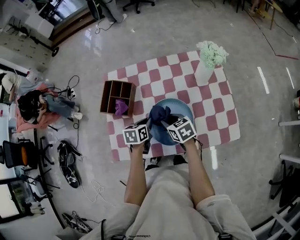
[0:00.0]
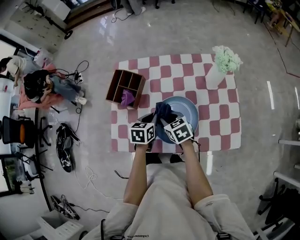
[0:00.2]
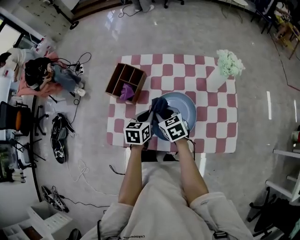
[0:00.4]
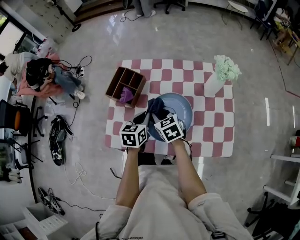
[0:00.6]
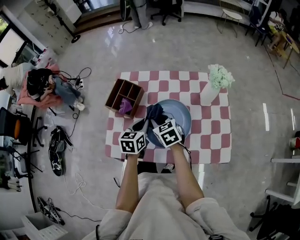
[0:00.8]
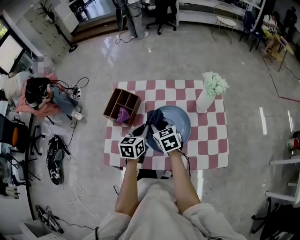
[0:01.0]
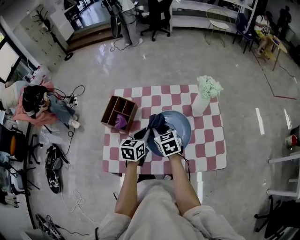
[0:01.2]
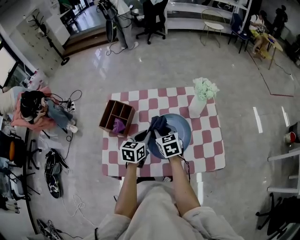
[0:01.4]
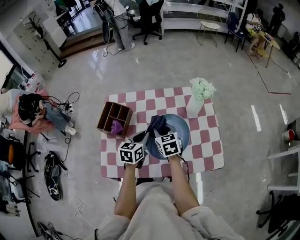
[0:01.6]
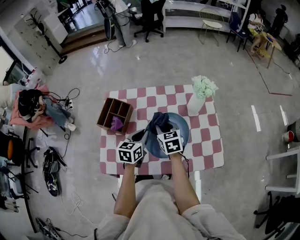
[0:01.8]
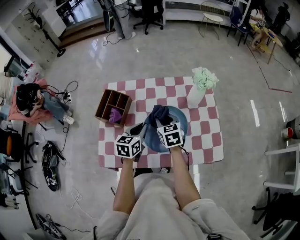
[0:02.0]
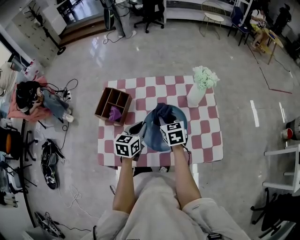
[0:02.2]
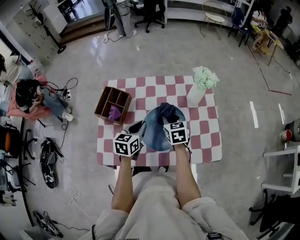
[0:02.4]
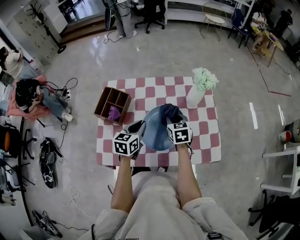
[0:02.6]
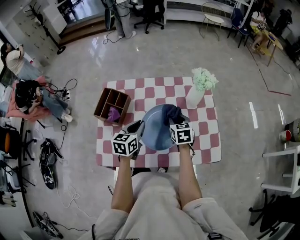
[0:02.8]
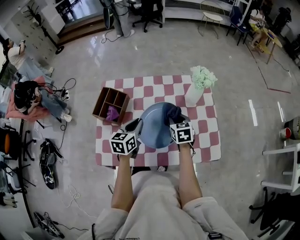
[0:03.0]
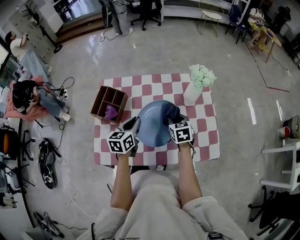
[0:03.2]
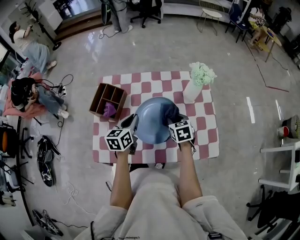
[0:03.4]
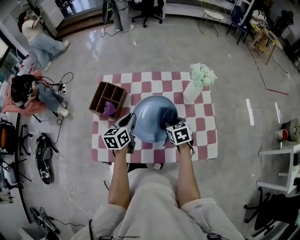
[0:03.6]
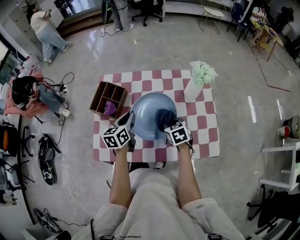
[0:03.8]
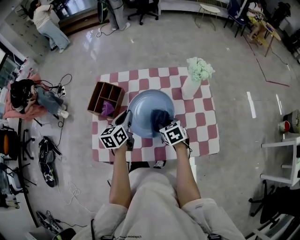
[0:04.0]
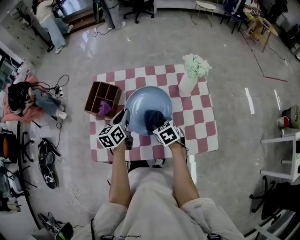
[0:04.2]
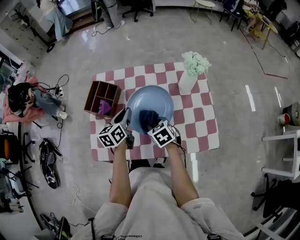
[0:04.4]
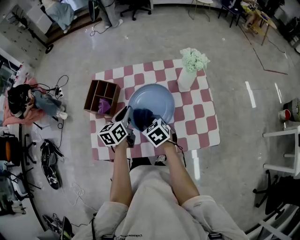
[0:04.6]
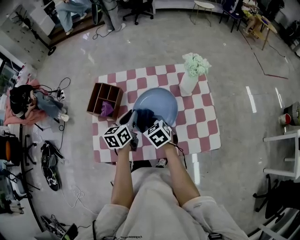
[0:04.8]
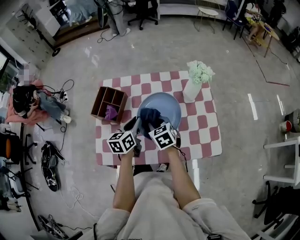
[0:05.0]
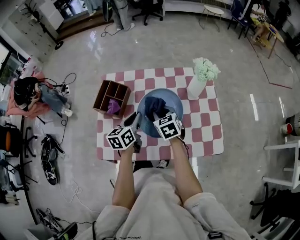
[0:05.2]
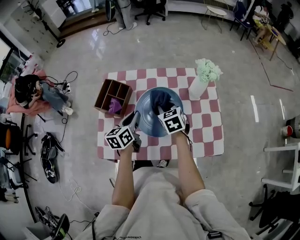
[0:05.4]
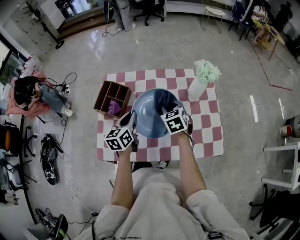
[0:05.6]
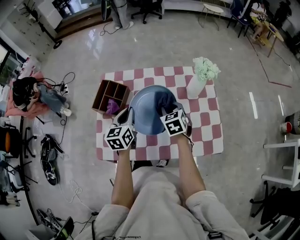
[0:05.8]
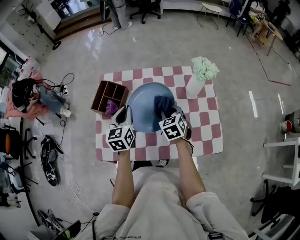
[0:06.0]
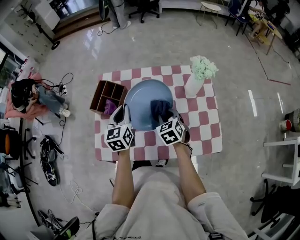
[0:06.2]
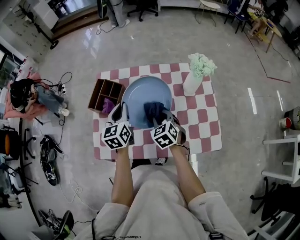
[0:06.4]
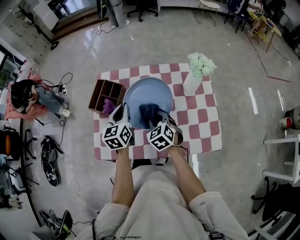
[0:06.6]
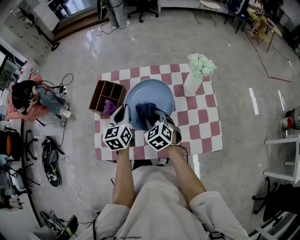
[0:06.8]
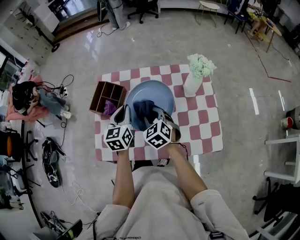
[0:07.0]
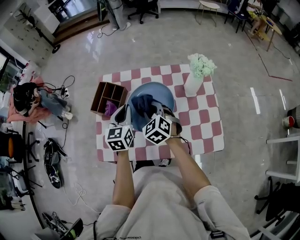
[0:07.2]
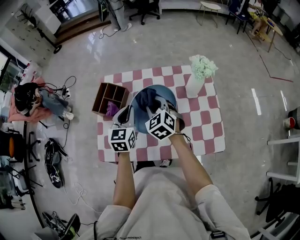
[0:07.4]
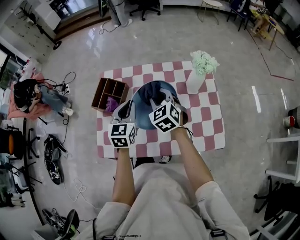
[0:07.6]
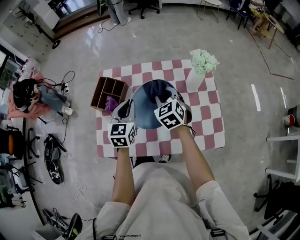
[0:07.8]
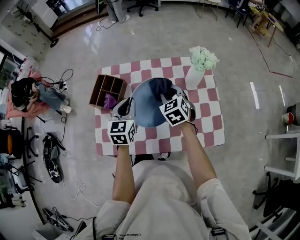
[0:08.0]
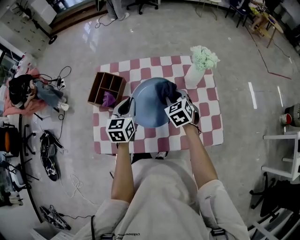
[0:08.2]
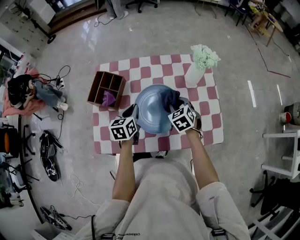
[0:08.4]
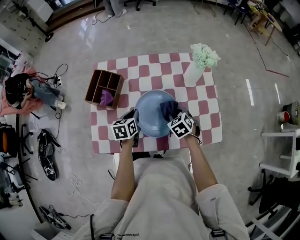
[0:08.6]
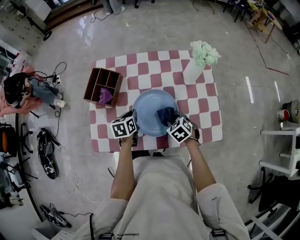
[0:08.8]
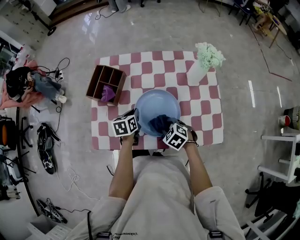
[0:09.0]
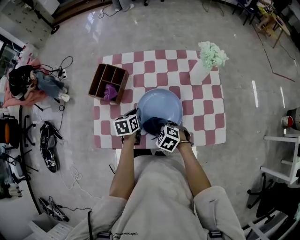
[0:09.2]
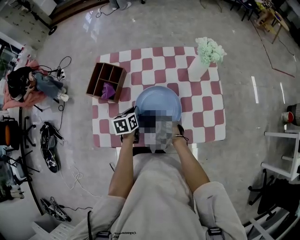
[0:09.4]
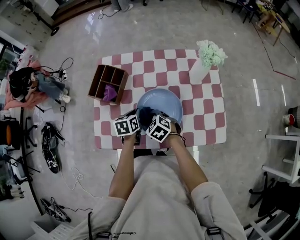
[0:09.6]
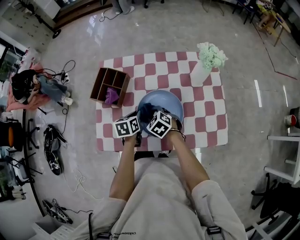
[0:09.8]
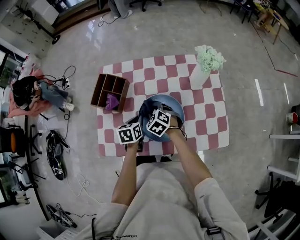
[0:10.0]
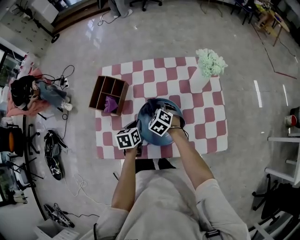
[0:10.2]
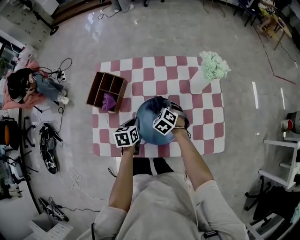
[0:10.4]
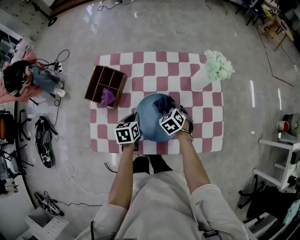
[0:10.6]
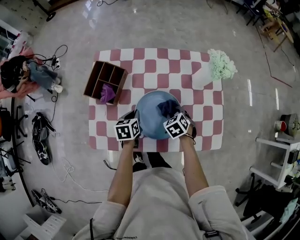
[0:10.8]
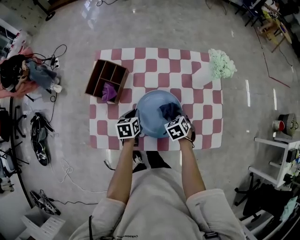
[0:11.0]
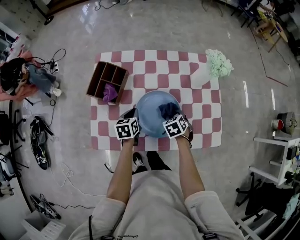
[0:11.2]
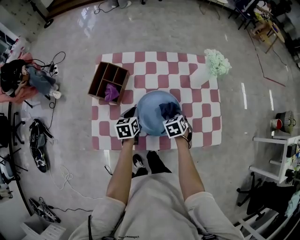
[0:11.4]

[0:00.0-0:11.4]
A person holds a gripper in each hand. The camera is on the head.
0:00.0 to 0:01.4: The right gripper moves upward and forward, some 10 cm, and changes its angle by roughly 20 degrees; the left gripper moves upward, some 10 cm, and rotates approximately 20 degrees.
0:01.4 to 0:02.8: The right gripper goes approximately 10 cm to the right.
0:02.8 to 0:04.2: The right gripper heads backward and to the left, covering some 10 cm, and rotates approximately 20 degrees.
0:04.2 to 0:05.6: The right gripper travels forward and upward by approximately 10 cm.
0:05.6 to 0:07.2: The left gripper turns by approximately 20 degrees, while the right gripper heads to the left, covering approximately 10 cm, and changes its angle by roughly 20 degrees.
0:07.2 to 0:08.6: The left gripper moves downward, roughly 15 cm, and changes its angle by roughly 30 degrees, while the right gripper shifts roughly 20 cm downward and to the right, and turns by approximately 20 degrees.
0:08.6 to 0:10.0: The right gripper shifts roughly 15 cm to the left and forward, and turns by some 20 degrees.
0:10.0 to 0:11.4: The right gripper shifts about 10 cm to the right, and rotates approximately 30 degrees.

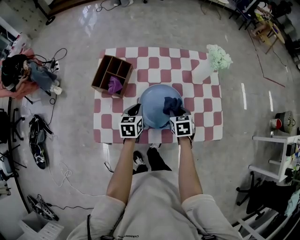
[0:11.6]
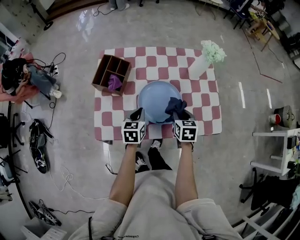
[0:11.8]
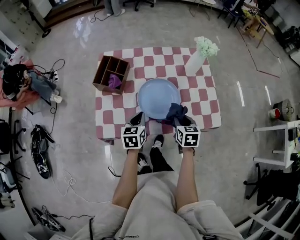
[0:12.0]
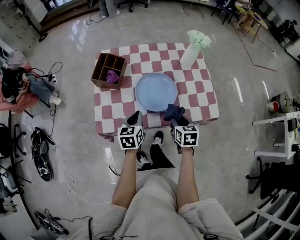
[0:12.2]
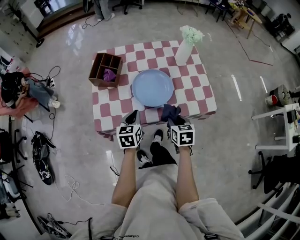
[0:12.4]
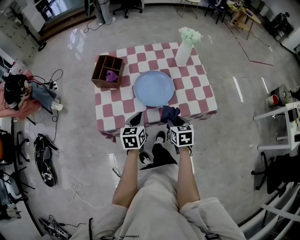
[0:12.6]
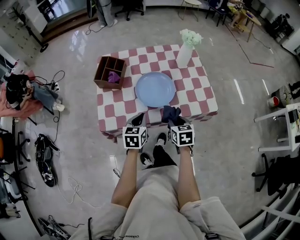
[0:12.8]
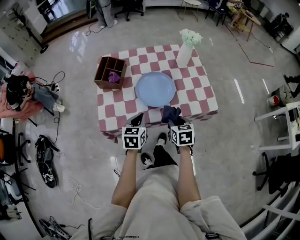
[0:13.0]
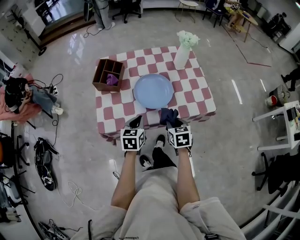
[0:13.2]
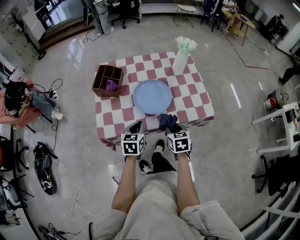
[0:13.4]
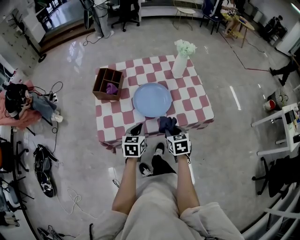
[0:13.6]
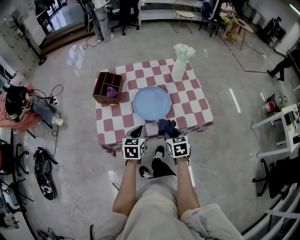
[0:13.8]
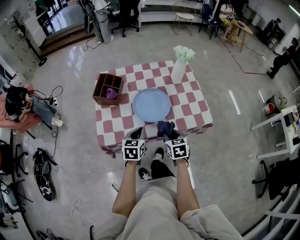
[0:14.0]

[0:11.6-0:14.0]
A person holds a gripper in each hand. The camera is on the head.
0:11.6 to 0:12.8: Both grippers move backward, roughly 20 cm.
0:12.8 to 0:14.0: The two grippers keep their place.

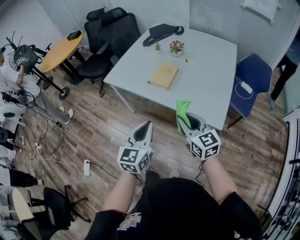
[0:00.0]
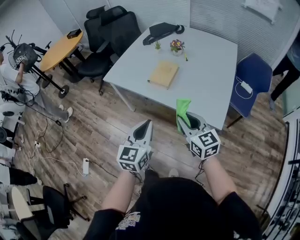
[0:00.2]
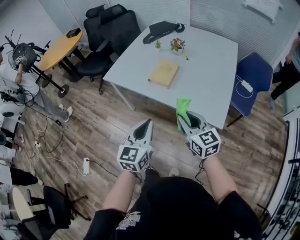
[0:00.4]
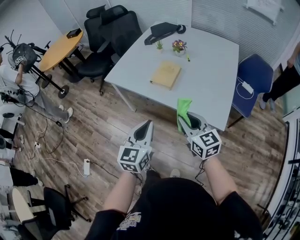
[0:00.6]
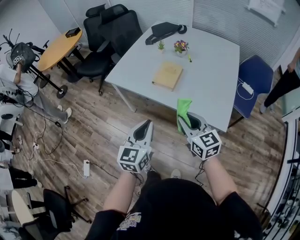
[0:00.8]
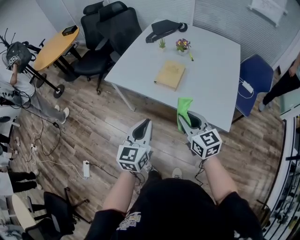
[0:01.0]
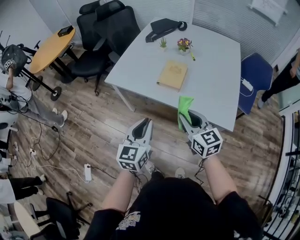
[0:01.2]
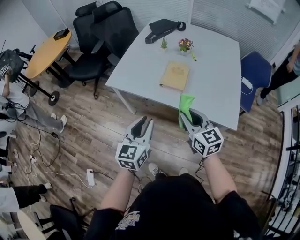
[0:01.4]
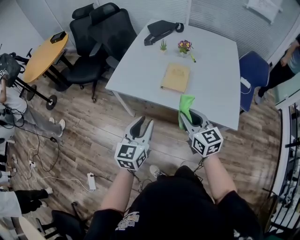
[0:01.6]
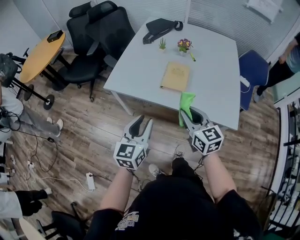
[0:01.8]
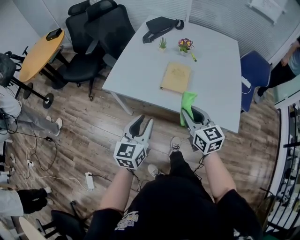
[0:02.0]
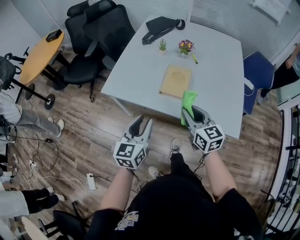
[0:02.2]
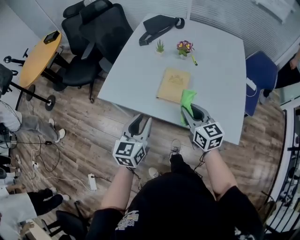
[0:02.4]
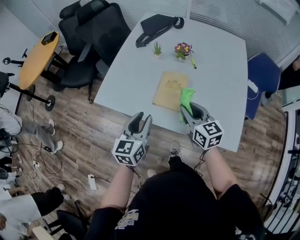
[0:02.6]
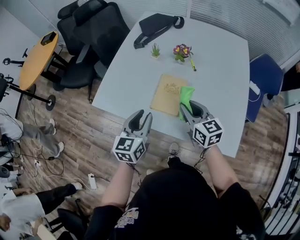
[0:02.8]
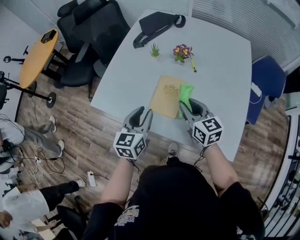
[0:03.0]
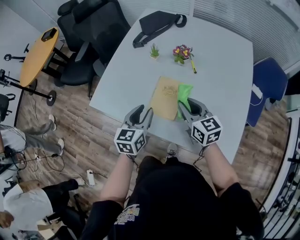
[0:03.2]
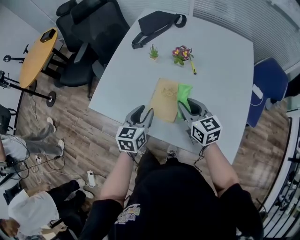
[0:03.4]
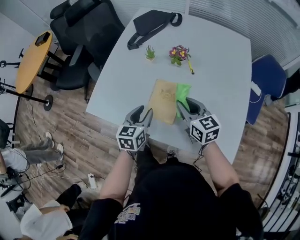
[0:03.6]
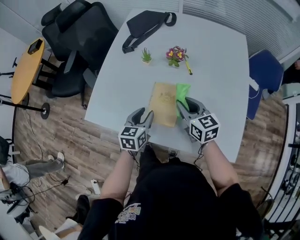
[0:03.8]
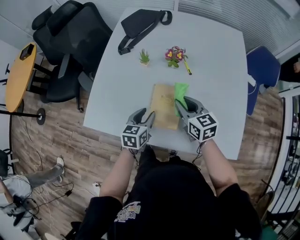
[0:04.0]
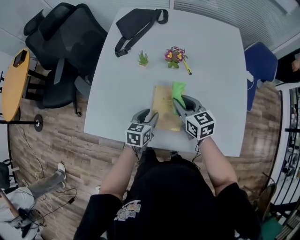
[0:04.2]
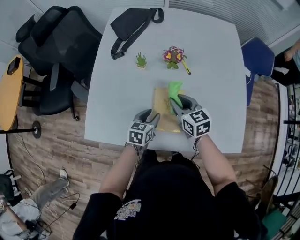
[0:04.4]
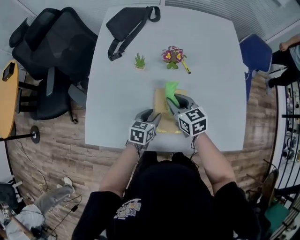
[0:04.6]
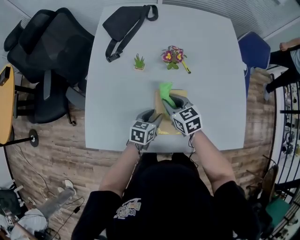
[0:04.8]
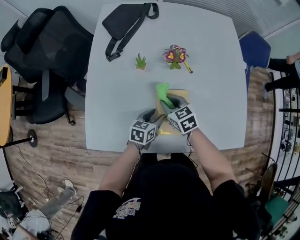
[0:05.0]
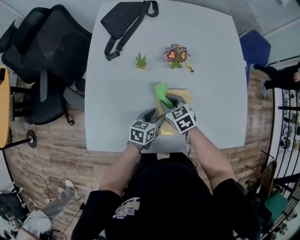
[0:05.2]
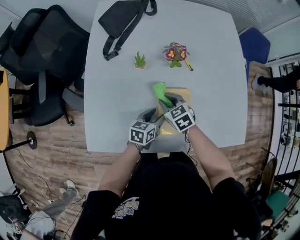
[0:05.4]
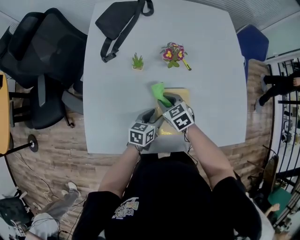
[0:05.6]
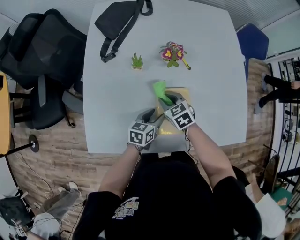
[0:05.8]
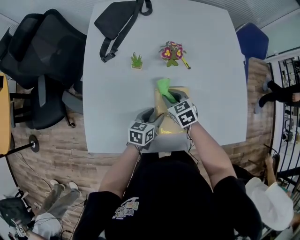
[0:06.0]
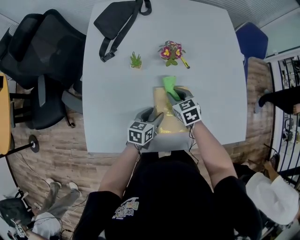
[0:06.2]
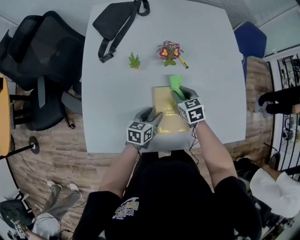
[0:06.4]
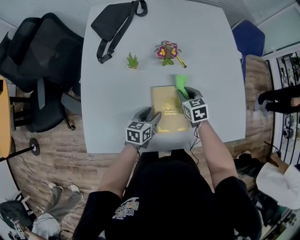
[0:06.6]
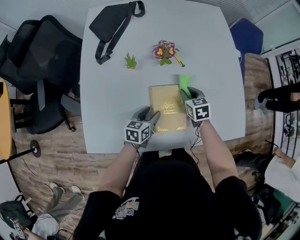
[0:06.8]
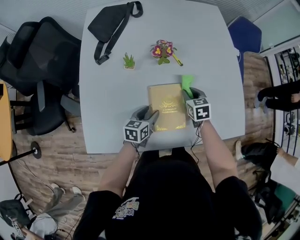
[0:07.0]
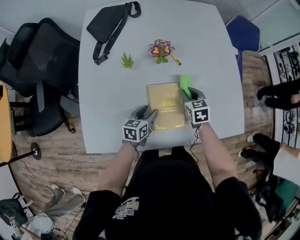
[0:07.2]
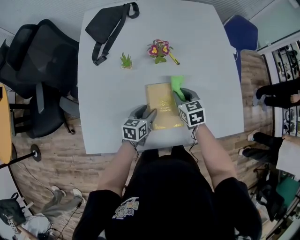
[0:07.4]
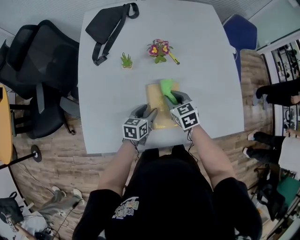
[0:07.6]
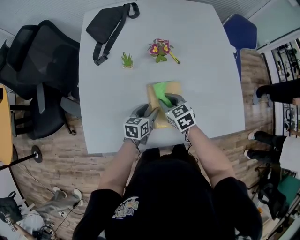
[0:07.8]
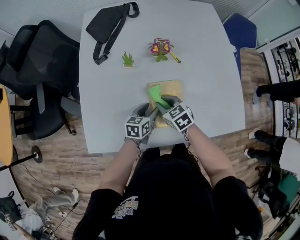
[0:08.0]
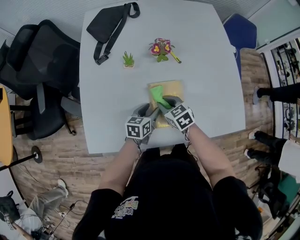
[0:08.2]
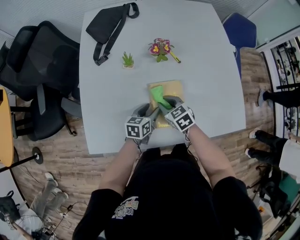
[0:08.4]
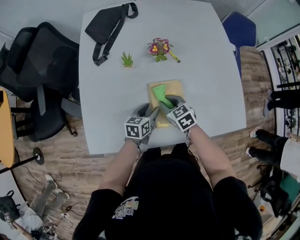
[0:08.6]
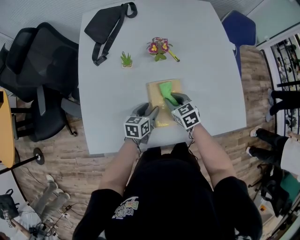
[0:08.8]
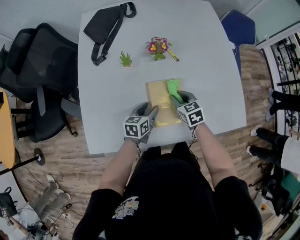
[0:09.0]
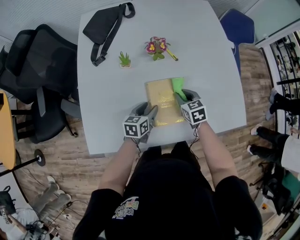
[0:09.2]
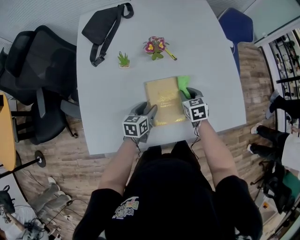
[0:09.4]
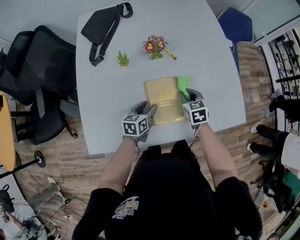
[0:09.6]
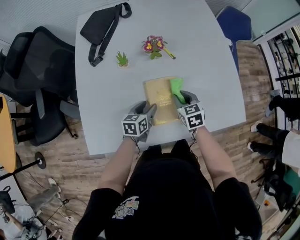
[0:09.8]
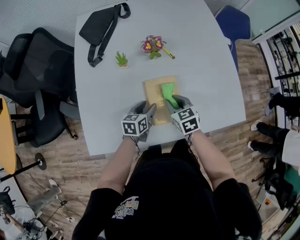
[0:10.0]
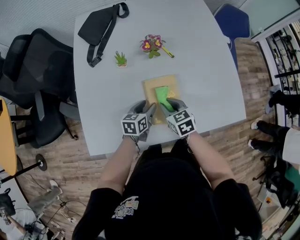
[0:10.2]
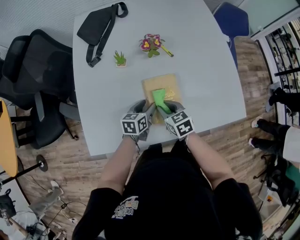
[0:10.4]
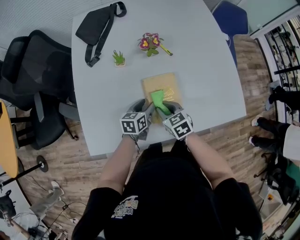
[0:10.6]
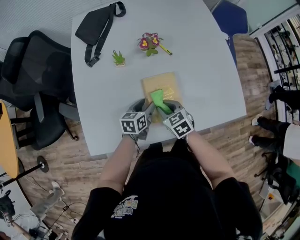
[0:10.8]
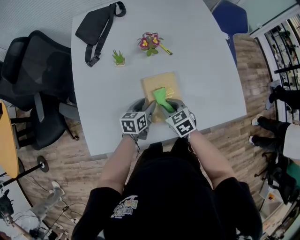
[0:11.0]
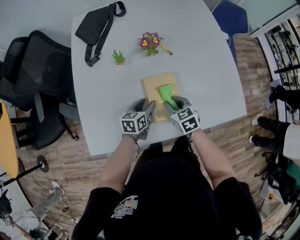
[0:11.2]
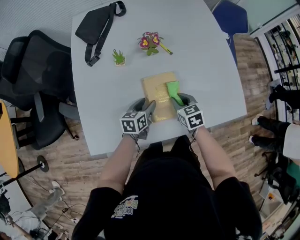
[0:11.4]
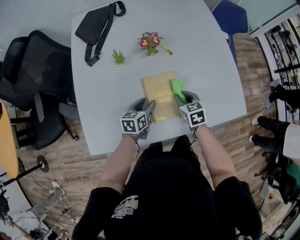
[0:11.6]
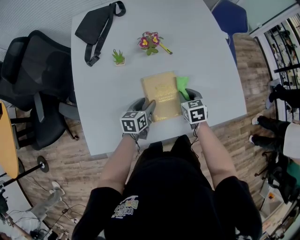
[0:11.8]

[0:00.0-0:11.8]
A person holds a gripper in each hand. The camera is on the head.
0:00.0 to 0:01.4: The two grippers go roughly 15 cm to the left and forward.
0:01.4 to 0:03.0: The grippers both shift forward by some 25 cm.
0:03.0 to 0:04.4: The right gripper shifts roughly 15 cm forward and downward, while the left gripper shifts some 20 cm downward and forward, and changes its angle by roughly 30 degrees.
0:04.4 to 0:06.0: The right gripper heads downward, covering roughly 10 cm.
0:06.0 to 0:07.4: The right gripper moves to the right, roughly 10 cm.
0:08.8 to 0:10.4: The right gripper travels backward by approximately 5 cm, and moves some 10 cm to the right and comes back.
0:10.4 to 0:11.8: The right gripper moves to the right and forward, approximately 10 cm.
